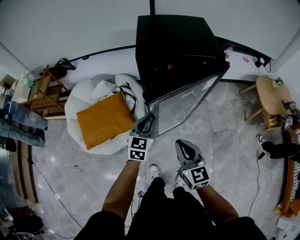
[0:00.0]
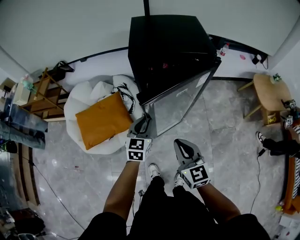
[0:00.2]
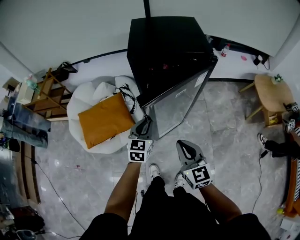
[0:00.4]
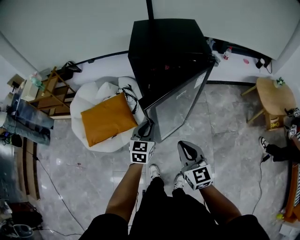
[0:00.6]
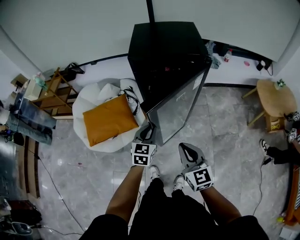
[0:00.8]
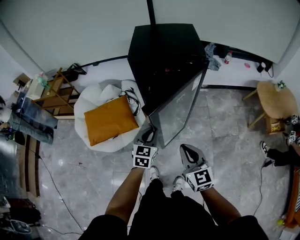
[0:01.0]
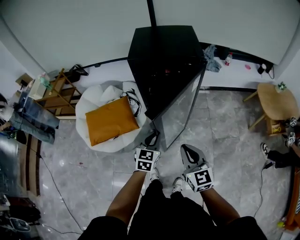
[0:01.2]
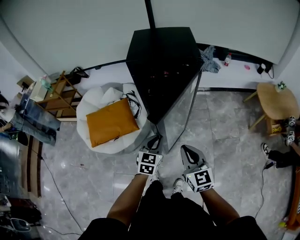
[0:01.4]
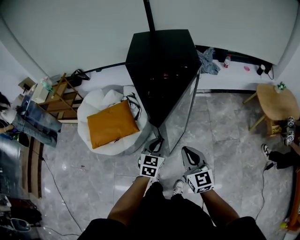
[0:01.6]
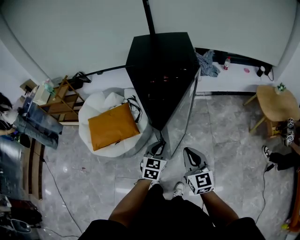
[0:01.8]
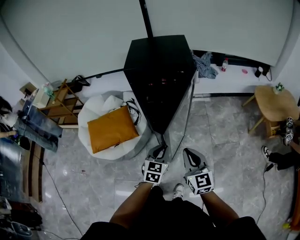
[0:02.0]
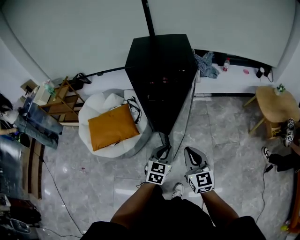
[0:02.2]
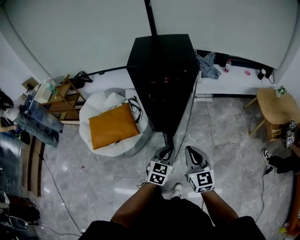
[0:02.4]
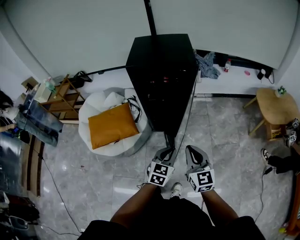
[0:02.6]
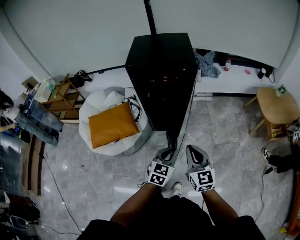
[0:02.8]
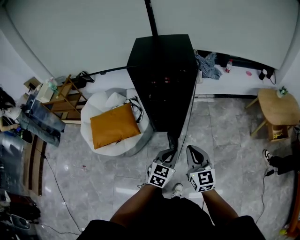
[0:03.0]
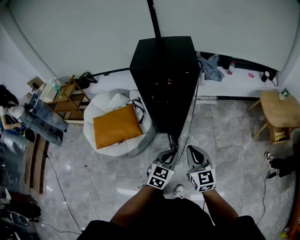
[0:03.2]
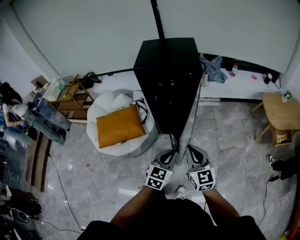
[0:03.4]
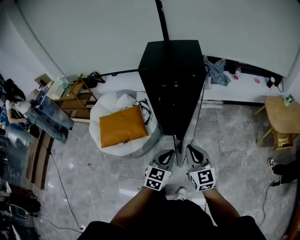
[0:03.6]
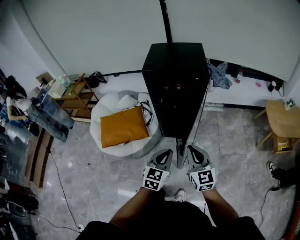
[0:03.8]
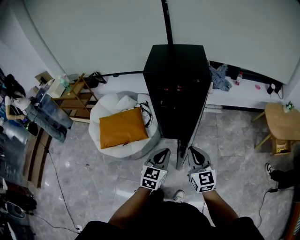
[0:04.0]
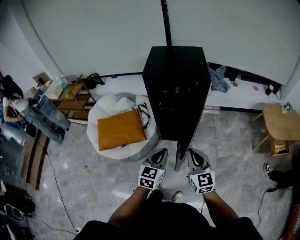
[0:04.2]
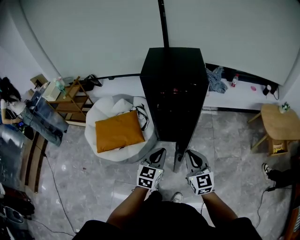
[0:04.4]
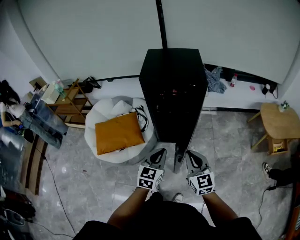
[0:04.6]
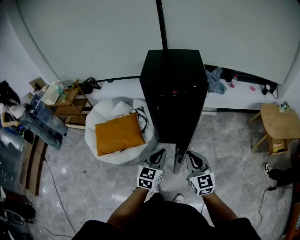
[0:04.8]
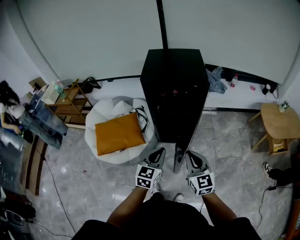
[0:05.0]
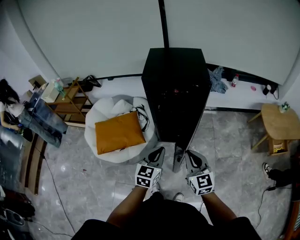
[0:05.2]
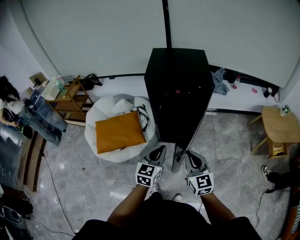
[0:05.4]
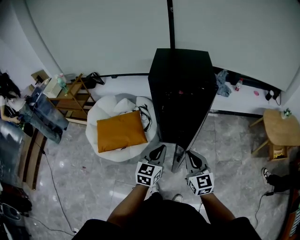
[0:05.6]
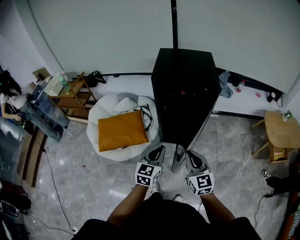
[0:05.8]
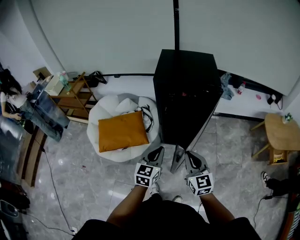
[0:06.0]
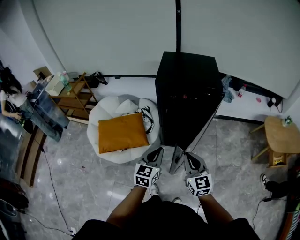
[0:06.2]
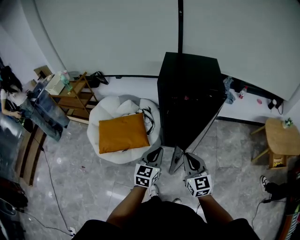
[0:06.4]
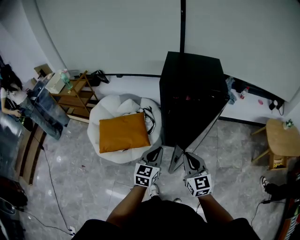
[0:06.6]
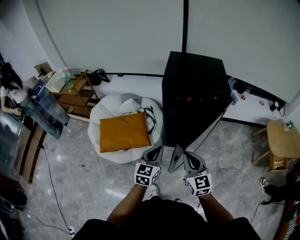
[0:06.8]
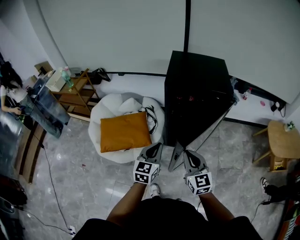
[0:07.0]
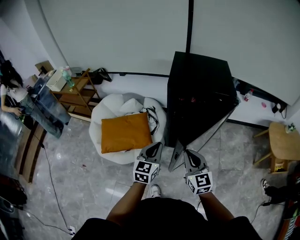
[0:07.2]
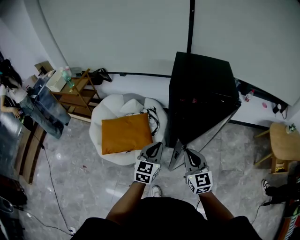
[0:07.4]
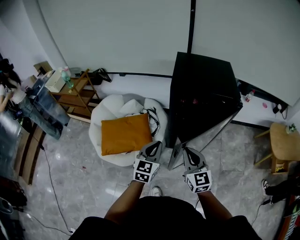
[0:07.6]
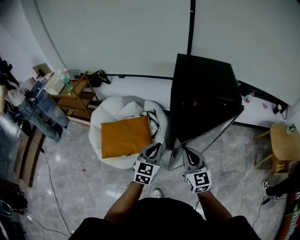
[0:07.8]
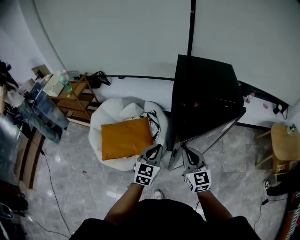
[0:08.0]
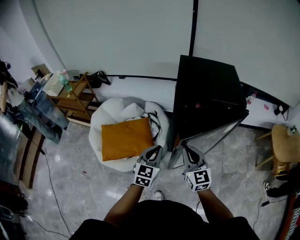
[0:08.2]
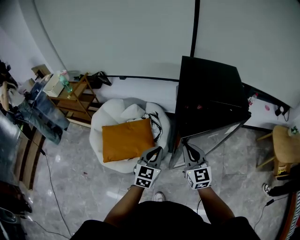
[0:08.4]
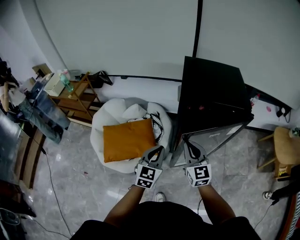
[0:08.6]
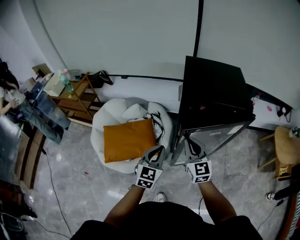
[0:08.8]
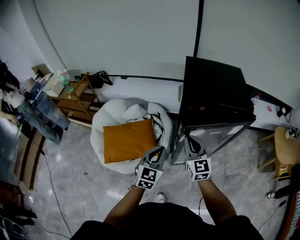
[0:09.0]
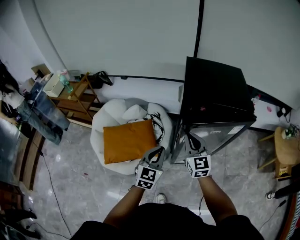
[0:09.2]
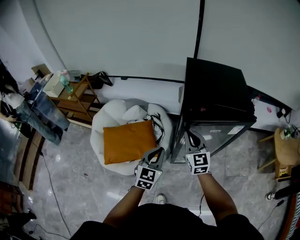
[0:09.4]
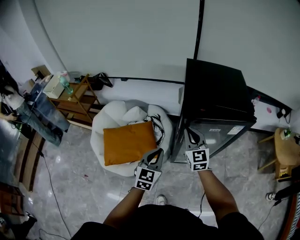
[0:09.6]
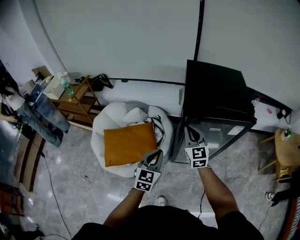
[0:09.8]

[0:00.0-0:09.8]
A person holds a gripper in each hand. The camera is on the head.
0:00.0 to 0:01.4: The right gripper goes approximately 15 cm to the right and backward. The left gripper is displaced backward and to the right by some 15 cm.
0:01.4 to 0:02.8: The left gripper shifts roughly 10 cm to the right and backward, while the right gripper moves to the right, some 5 cm.
0:02.8 to 0:04.2: The left gripper moves to the left and upward, about 10 cm.
0:04.2 to 0:05.6: The left gripper changes place by about 5 cm.
0:05.6 to 0:07.0: The grippers both shift to the left and forward by some 10 cm.
0:07.0 to 0:08.4: Both grippers travel together forward and to the left, some 10 cm.
0:08.4 to 0:09.8: The right gripper shifts roughly 10 cm forward.

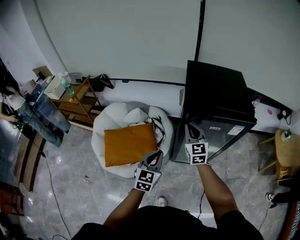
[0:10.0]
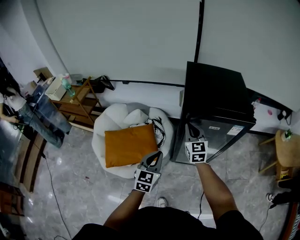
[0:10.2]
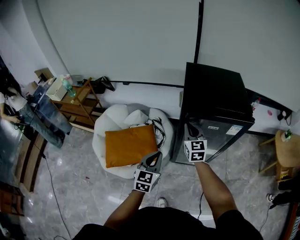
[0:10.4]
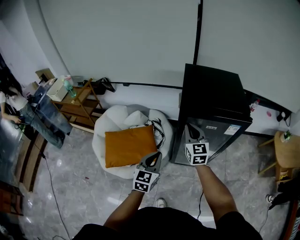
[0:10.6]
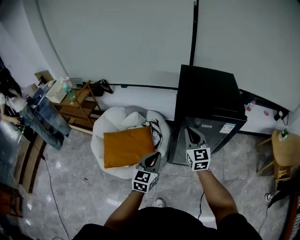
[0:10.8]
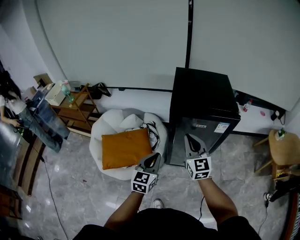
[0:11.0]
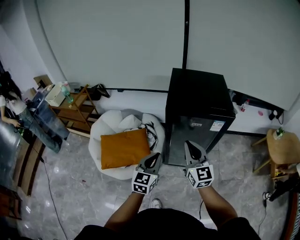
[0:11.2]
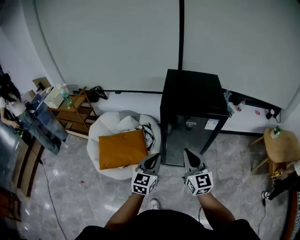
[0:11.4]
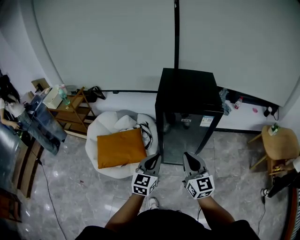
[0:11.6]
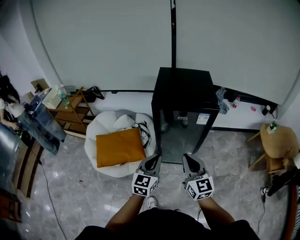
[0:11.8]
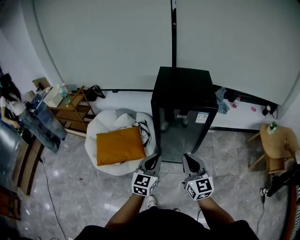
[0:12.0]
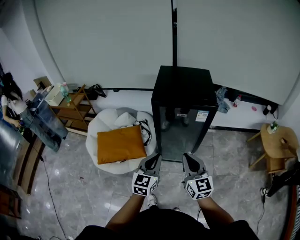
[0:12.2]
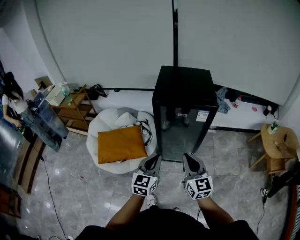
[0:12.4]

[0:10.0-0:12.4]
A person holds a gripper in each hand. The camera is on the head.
0:10.0 to 0:11.2: The right gripper shifts some 20 cm backward, upward and to the right. Meanwhile the left gripper is displaced to the right, upward and backward by roughly 10 cm.
0:11.2 to 0:12.4: Both grippers move backward and to the right, about 10 cm.

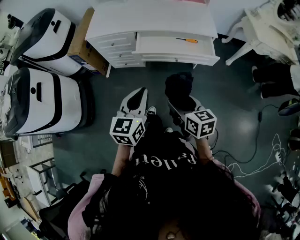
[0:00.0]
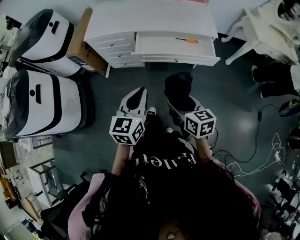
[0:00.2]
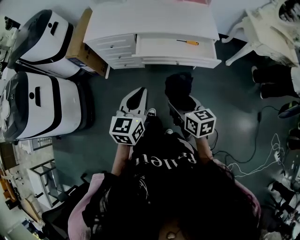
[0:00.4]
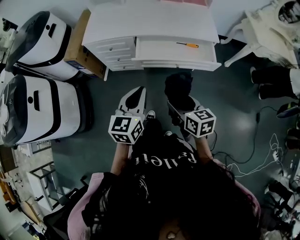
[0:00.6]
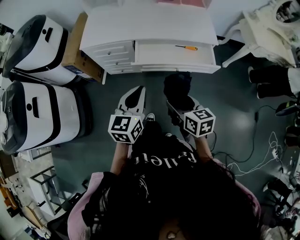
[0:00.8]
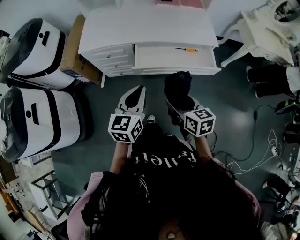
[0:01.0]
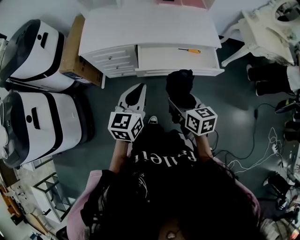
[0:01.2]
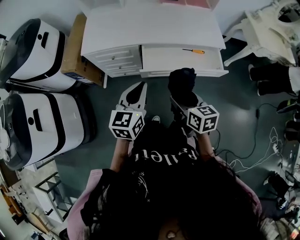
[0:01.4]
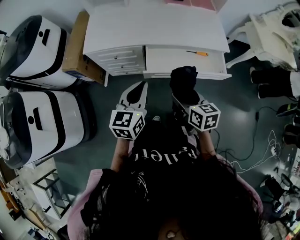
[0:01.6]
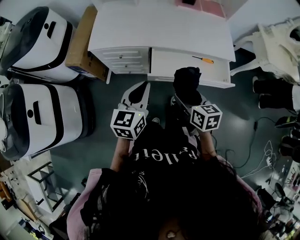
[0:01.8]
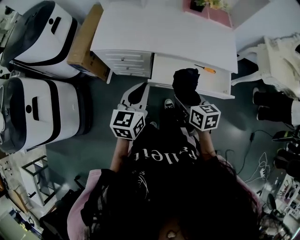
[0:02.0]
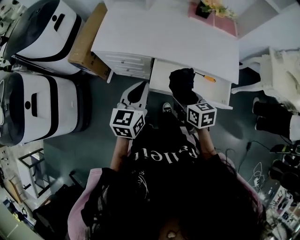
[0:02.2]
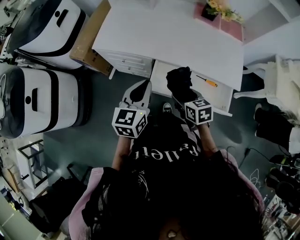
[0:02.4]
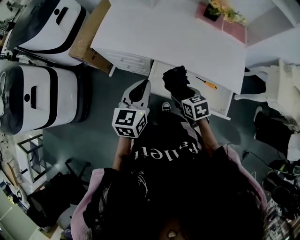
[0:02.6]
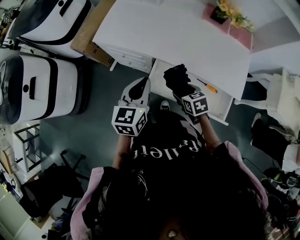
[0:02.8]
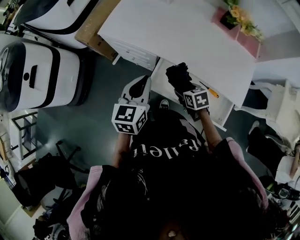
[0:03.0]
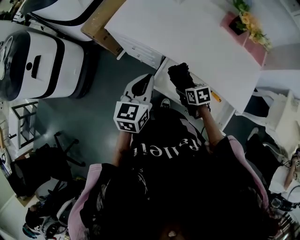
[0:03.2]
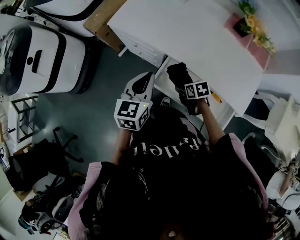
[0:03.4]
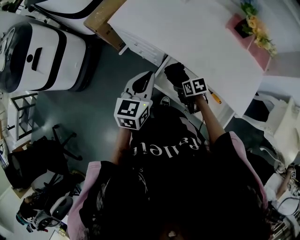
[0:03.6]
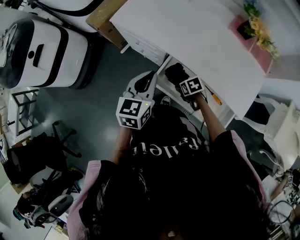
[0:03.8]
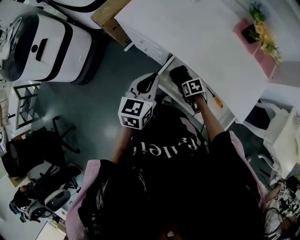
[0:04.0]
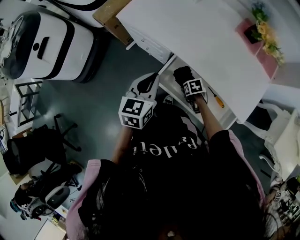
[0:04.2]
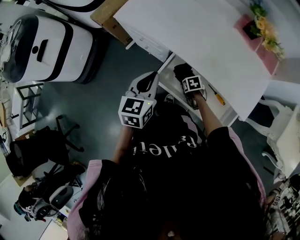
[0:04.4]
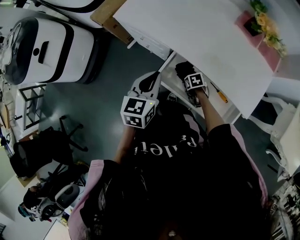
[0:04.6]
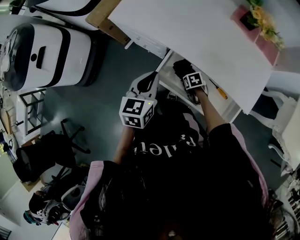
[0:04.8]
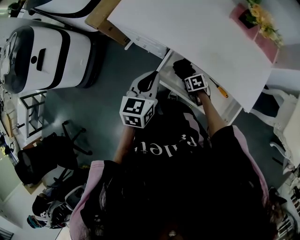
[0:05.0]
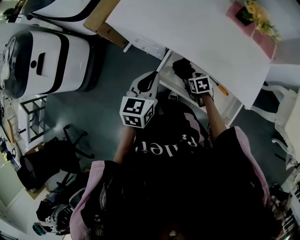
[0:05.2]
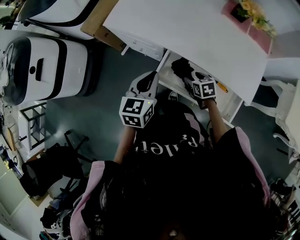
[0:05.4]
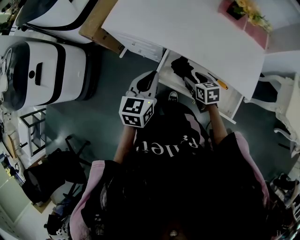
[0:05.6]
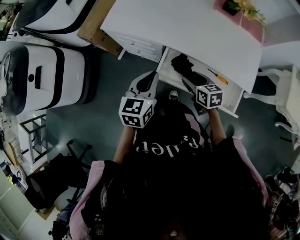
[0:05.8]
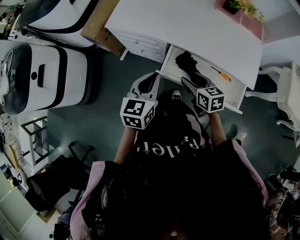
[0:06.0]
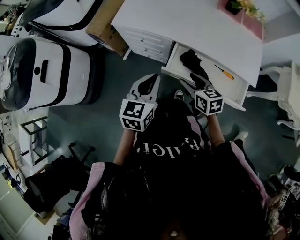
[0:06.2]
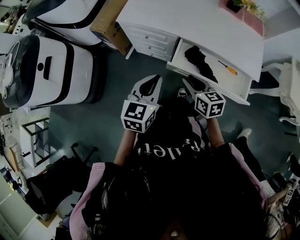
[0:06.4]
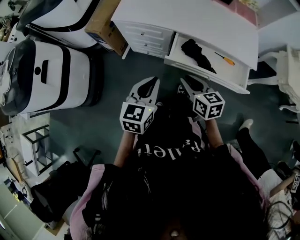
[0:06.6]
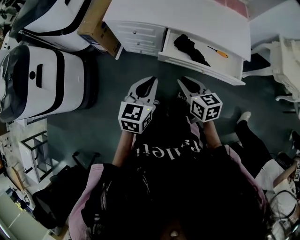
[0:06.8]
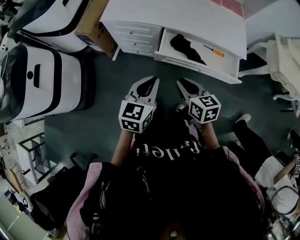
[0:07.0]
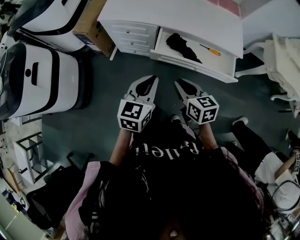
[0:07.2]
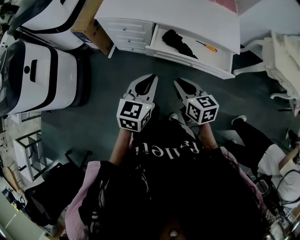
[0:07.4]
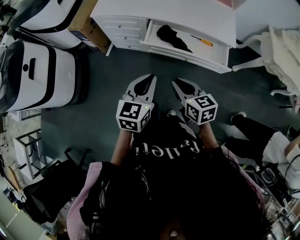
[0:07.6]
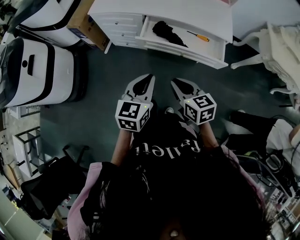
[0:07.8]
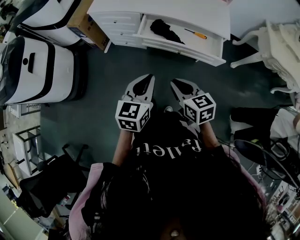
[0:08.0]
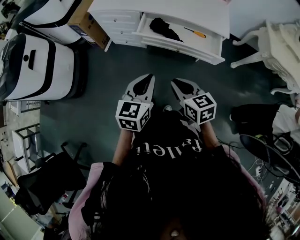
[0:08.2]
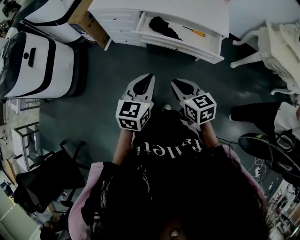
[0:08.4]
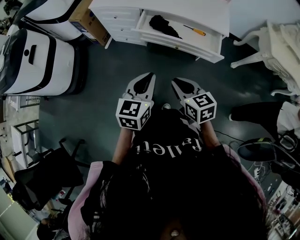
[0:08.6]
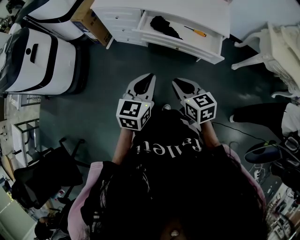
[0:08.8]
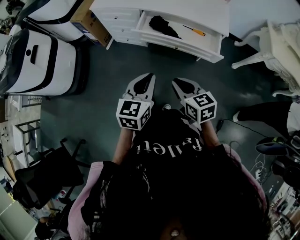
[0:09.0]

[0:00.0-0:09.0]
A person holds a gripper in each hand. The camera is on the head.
0:00.0 to 0:01.6: The right gripper heads forward, covering approximately 20 cm. Meanwhile the left gripper goes some 25 cm forward and to the left.
0:01.6 to 0:03.0: The right gripper changes place by some 30 cm, and rotates roughly 50 degrees; the left gripper shifts by approximately 20 cm, and changes its angle by roughly 30 degrees.
0:03.0 to 0:04.4: The right gripper is displaced downward by some 15 cm, and turns by roughly 20 degrees.
0:04.4 to 0:06.0: The left gripper shifts by roughly 10 cm; the right gripper goes some 25 cm upward, and angles its fingers upward, by roughly 40 degrees.
0:06.0 to 0:07.6: The two grippers go roughly 25 cm backward. The right gripper closes up.
0:07.6 to 0:09.0: The two grippers go roughly 15 cm backward and to the right.

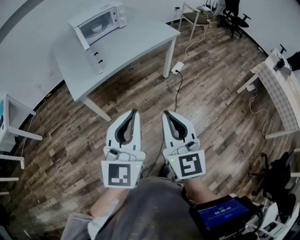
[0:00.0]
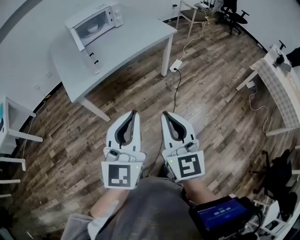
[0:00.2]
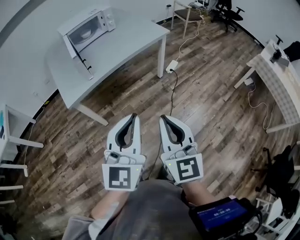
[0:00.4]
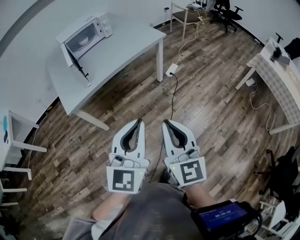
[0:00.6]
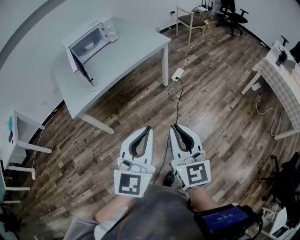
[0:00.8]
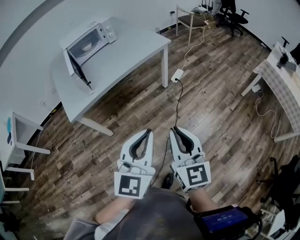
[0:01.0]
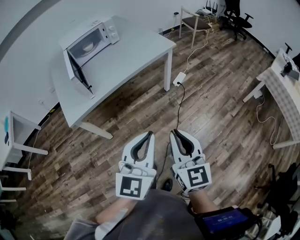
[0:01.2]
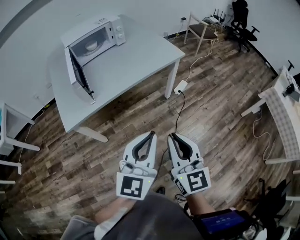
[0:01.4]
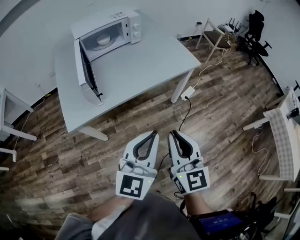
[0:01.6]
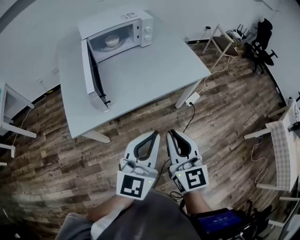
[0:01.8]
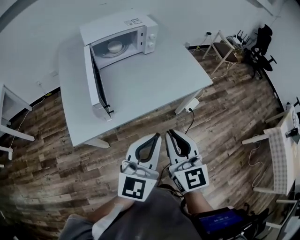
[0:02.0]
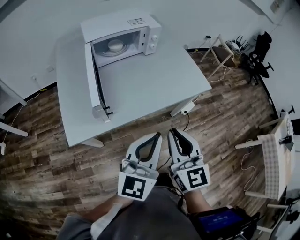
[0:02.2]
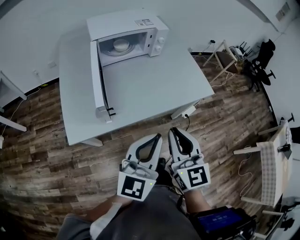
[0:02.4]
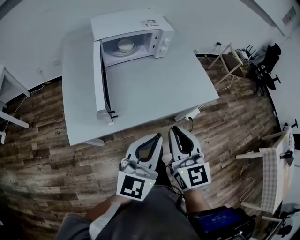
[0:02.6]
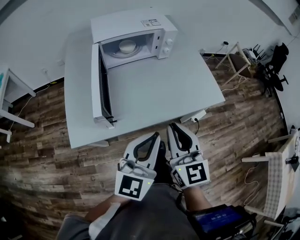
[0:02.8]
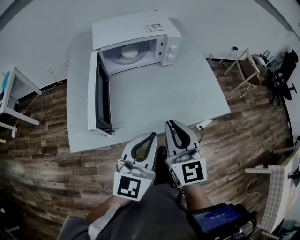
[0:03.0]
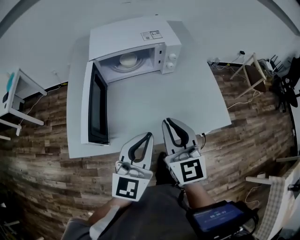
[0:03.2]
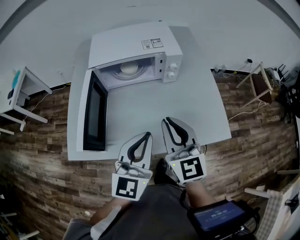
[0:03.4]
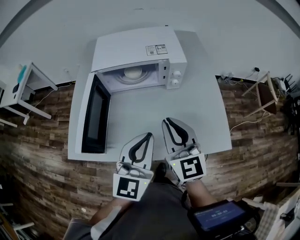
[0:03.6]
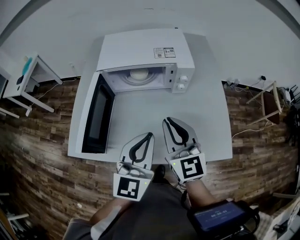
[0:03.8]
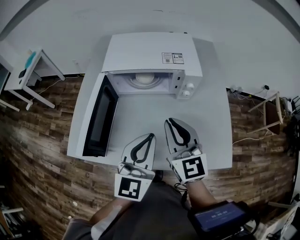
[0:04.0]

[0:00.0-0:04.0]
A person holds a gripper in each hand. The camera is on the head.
0:00.0 to 0:01.4: Both grippers move forward and to the right, some 20 cm.
0:01.4 to 0:02.6: The two grippers go approximately 25 cm forward and to the left.
0:02.6 to 0:04.0: The left gripper changes place by roughly 25 cm, and swivels about 30 degrees. The right gripper changes place by roughly 30 cm, and turns by roughly 30 degrees.
